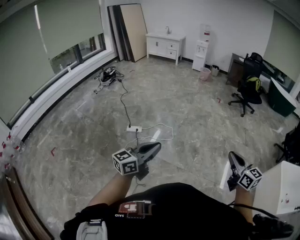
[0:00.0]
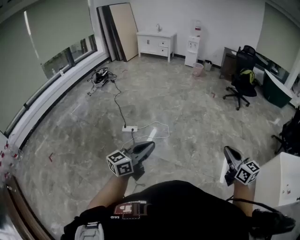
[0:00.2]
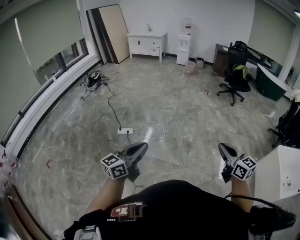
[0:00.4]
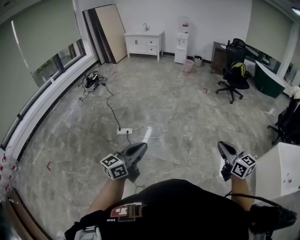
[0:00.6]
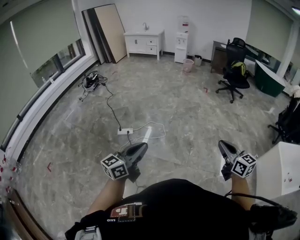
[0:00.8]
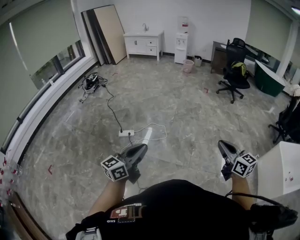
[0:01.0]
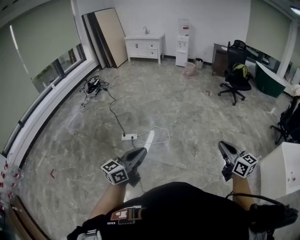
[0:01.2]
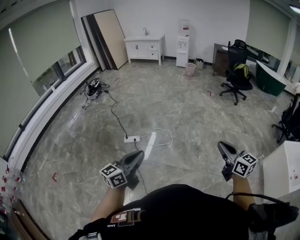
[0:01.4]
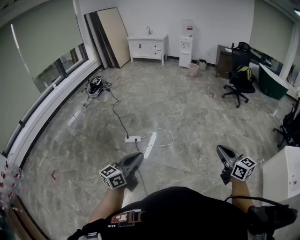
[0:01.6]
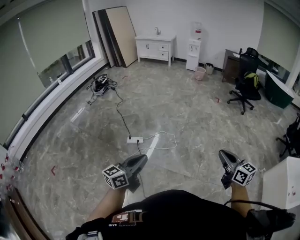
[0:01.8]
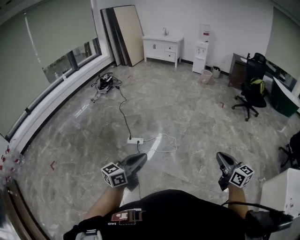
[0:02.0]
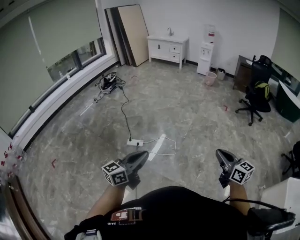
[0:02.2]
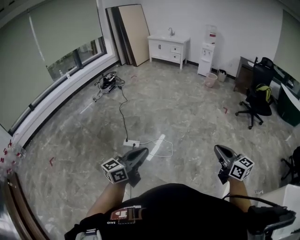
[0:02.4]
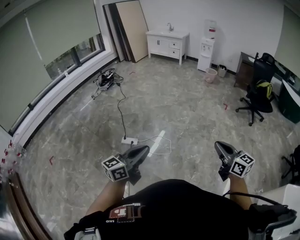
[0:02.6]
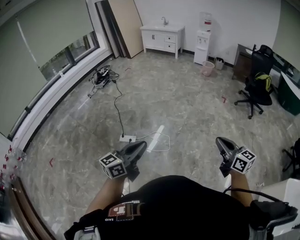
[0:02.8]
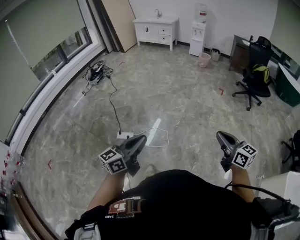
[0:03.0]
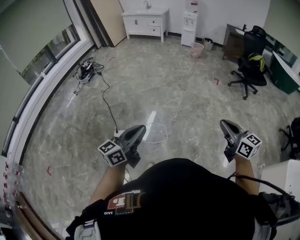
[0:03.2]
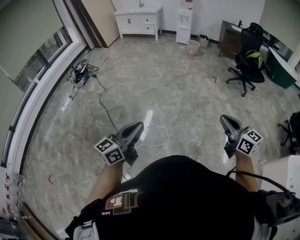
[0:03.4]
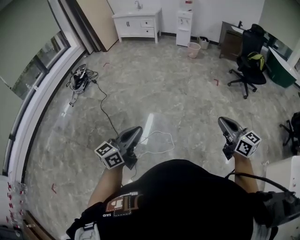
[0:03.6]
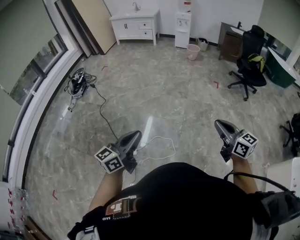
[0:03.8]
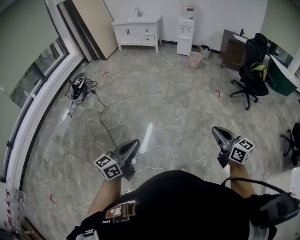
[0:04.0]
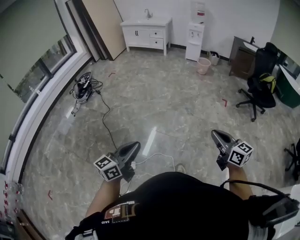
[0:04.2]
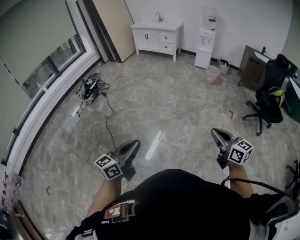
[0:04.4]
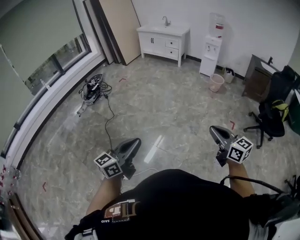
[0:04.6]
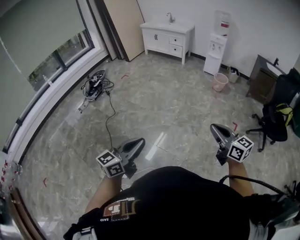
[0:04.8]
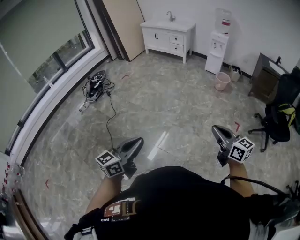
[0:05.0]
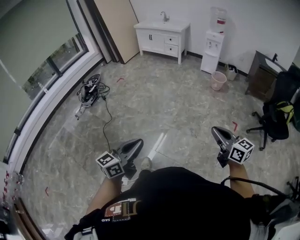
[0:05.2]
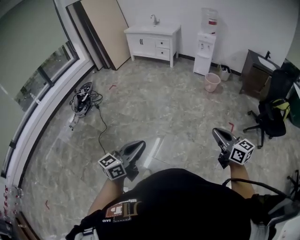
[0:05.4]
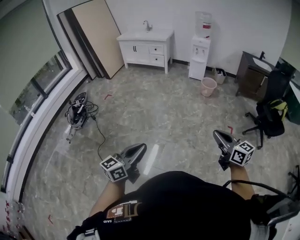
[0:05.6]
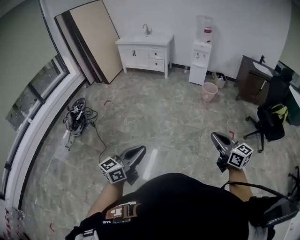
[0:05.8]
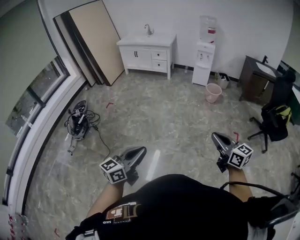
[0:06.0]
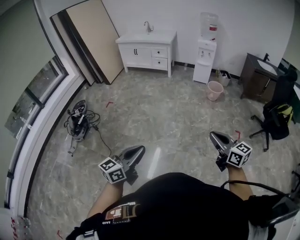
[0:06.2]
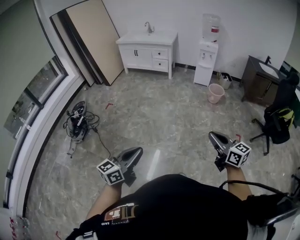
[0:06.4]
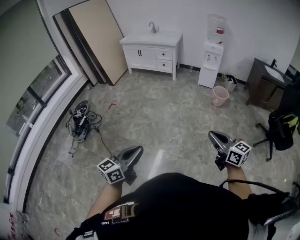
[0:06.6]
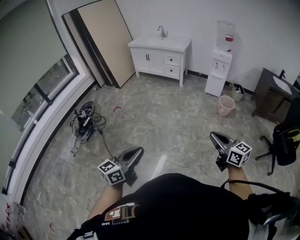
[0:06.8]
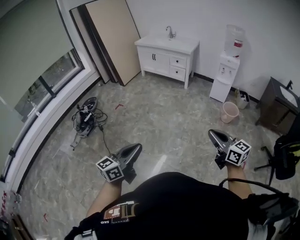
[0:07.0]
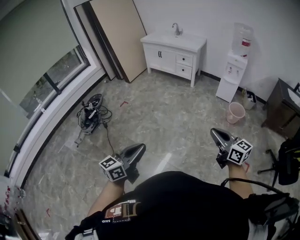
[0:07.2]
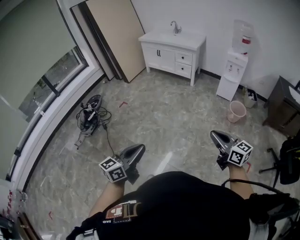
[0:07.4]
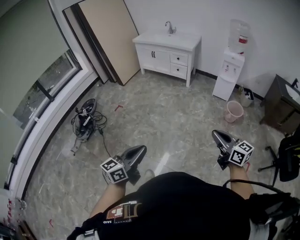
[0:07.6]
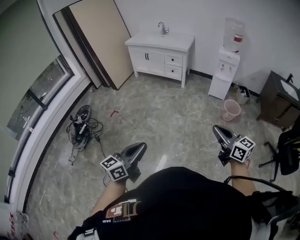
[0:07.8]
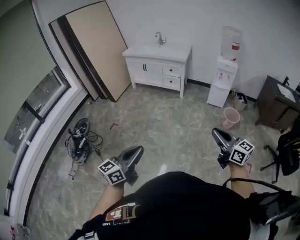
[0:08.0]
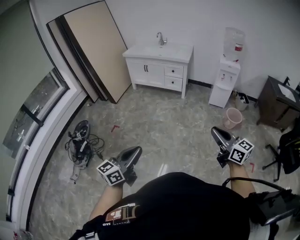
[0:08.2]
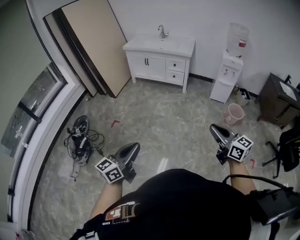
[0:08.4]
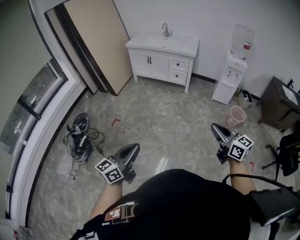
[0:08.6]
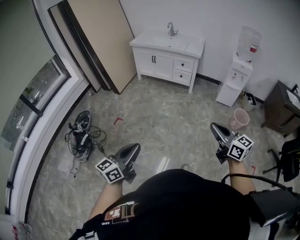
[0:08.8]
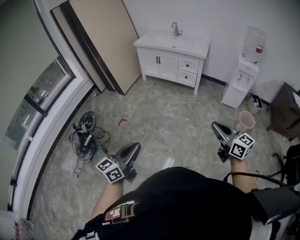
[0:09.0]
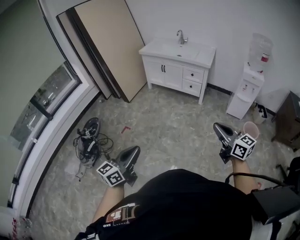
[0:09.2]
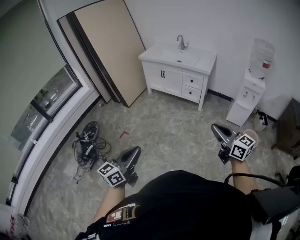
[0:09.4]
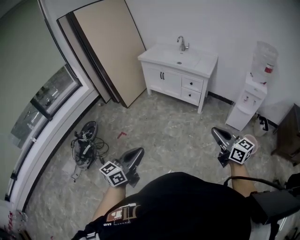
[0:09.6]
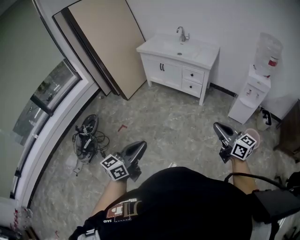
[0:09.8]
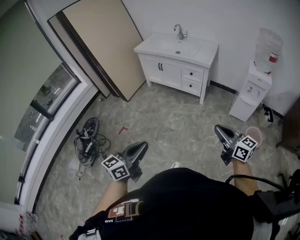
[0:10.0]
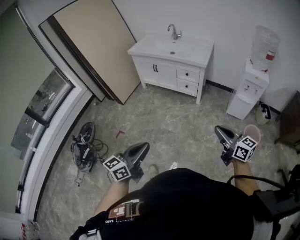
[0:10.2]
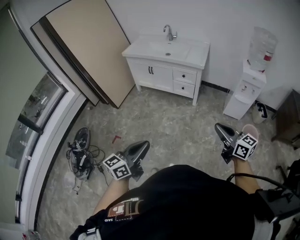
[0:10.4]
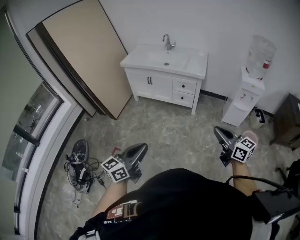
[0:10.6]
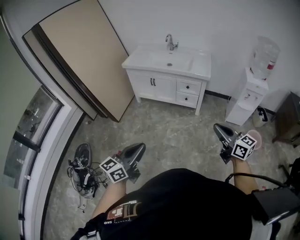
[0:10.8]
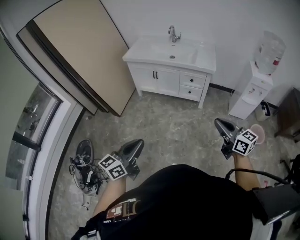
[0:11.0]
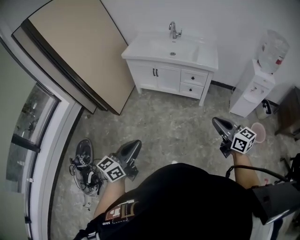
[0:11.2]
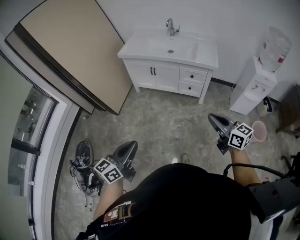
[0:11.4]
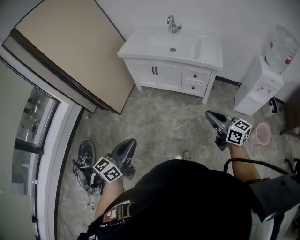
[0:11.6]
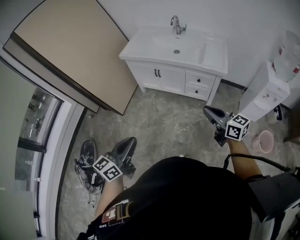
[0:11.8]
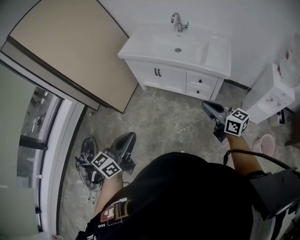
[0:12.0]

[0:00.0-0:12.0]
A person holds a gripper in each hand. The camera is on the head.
0:00.0 to 0:01.6: The left gripper is displaced to the left by approximately 15 cm, while the right gripper goes some 20 cm to the left and forward.
0:01.6 to 0:03.0: Both grippers move forward and to the right, approximately 35 cm.
0:03.0 to 0:04.4: The two grippers travel together, forward, some 50 cm.
0:04.4 to 0:06.0: Both grippers are carried forward, about 50 cm.
0:06.0 to 0:07.6: Both grippers move forward, some 35 cm.
0:07.6 to 0:09.0: The grippers both shift forward and to the left by roughly 40 cm.
0:09.0 to 0:10.4: The two grippers go approximately 35 cm forward and to the right.
0:10.4 to 0:12.0: Both grippers are carried forward, roughly 50 cm.

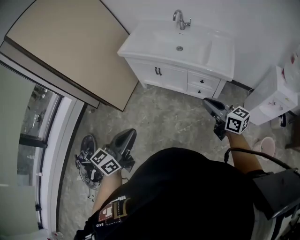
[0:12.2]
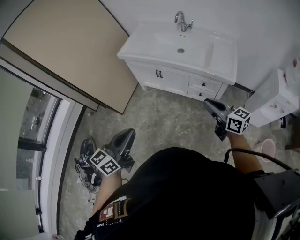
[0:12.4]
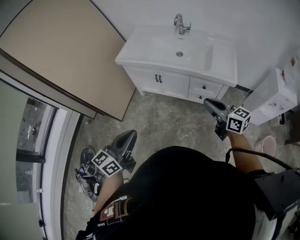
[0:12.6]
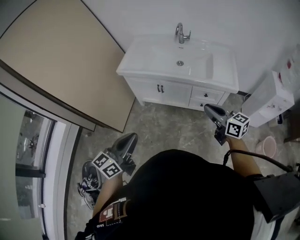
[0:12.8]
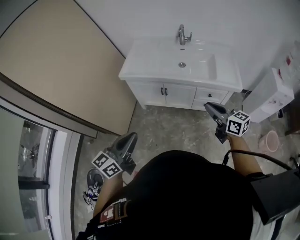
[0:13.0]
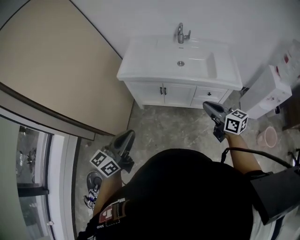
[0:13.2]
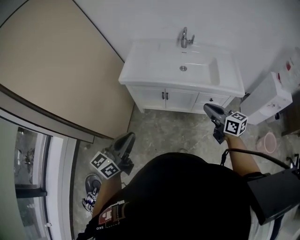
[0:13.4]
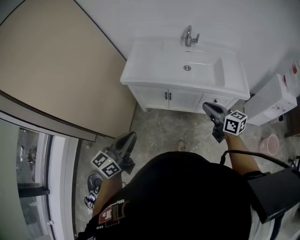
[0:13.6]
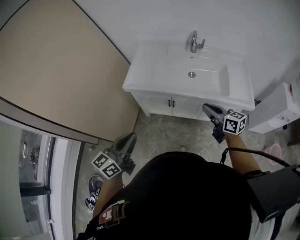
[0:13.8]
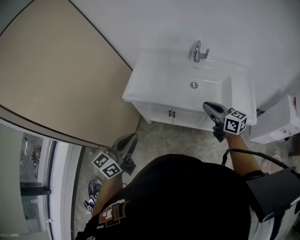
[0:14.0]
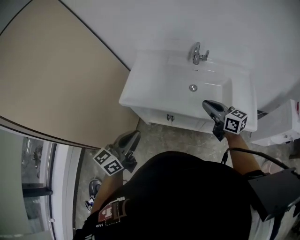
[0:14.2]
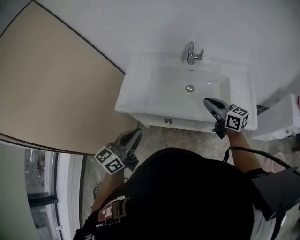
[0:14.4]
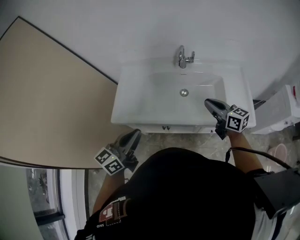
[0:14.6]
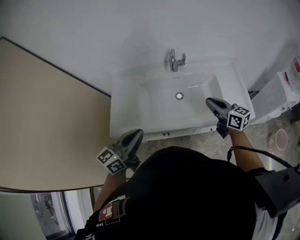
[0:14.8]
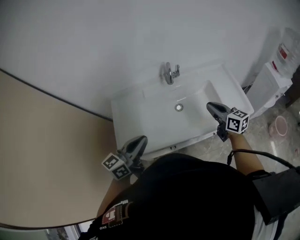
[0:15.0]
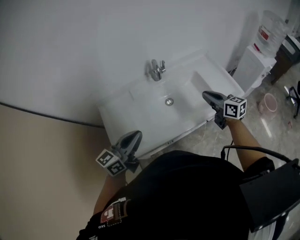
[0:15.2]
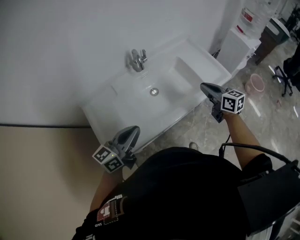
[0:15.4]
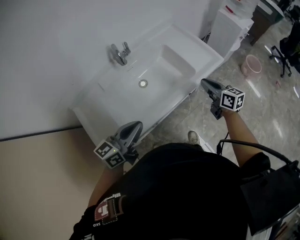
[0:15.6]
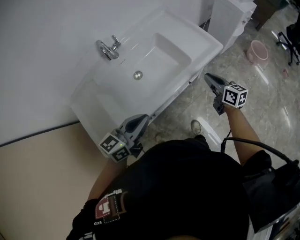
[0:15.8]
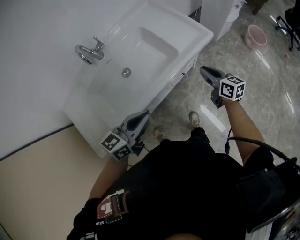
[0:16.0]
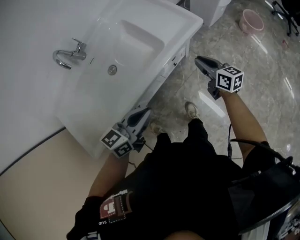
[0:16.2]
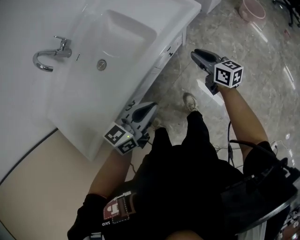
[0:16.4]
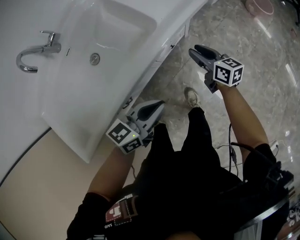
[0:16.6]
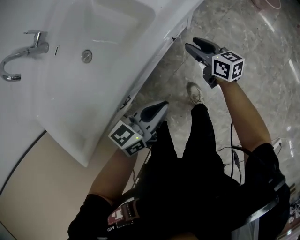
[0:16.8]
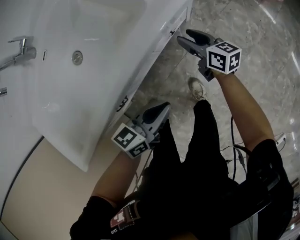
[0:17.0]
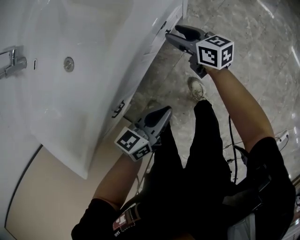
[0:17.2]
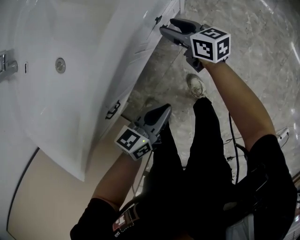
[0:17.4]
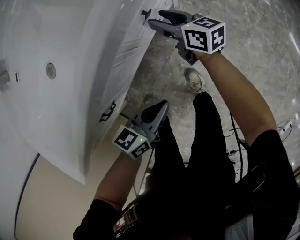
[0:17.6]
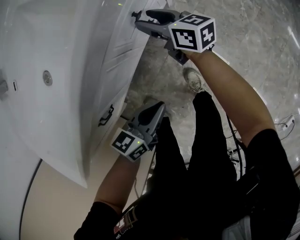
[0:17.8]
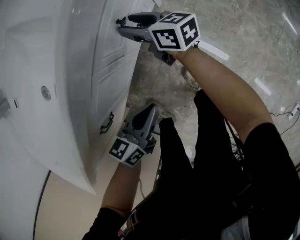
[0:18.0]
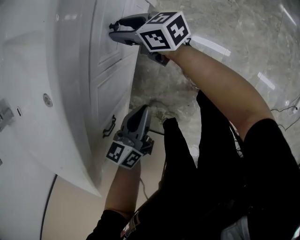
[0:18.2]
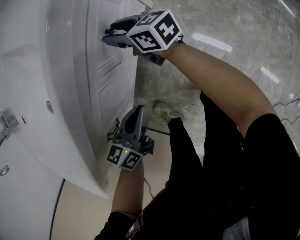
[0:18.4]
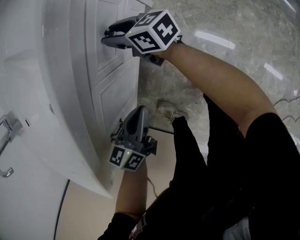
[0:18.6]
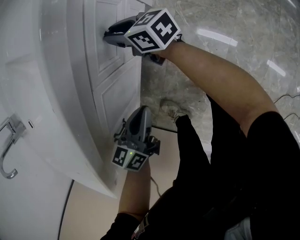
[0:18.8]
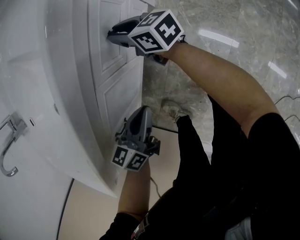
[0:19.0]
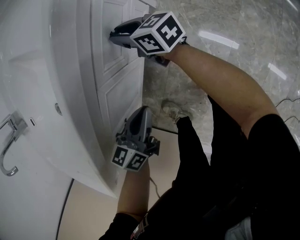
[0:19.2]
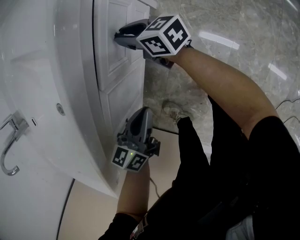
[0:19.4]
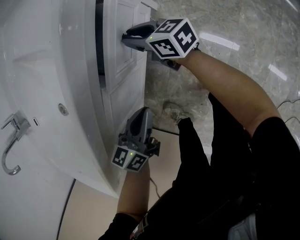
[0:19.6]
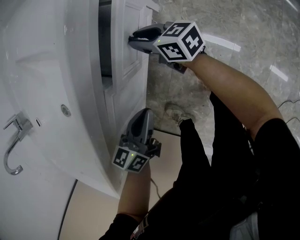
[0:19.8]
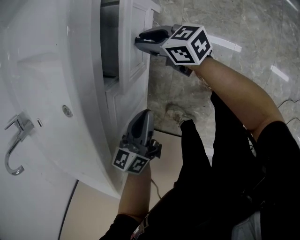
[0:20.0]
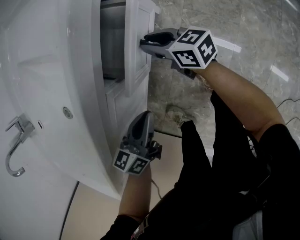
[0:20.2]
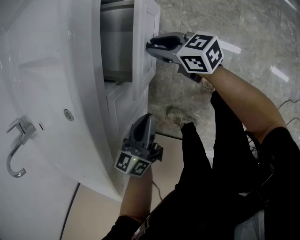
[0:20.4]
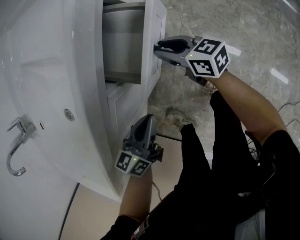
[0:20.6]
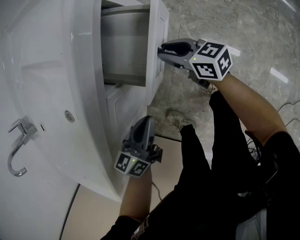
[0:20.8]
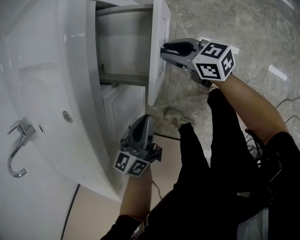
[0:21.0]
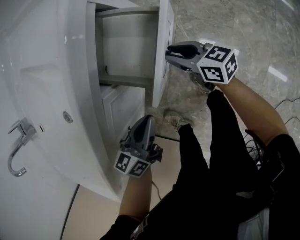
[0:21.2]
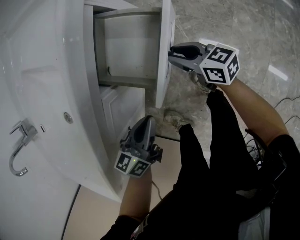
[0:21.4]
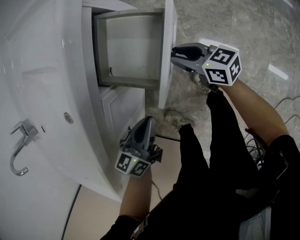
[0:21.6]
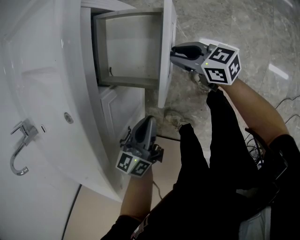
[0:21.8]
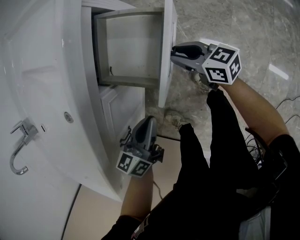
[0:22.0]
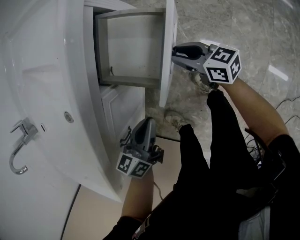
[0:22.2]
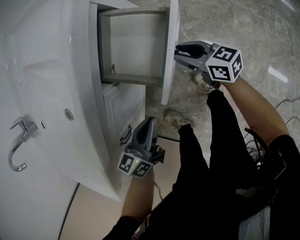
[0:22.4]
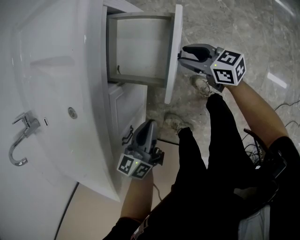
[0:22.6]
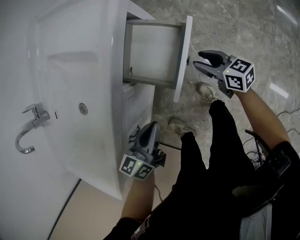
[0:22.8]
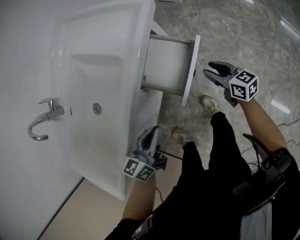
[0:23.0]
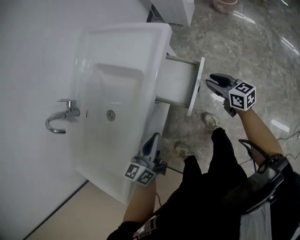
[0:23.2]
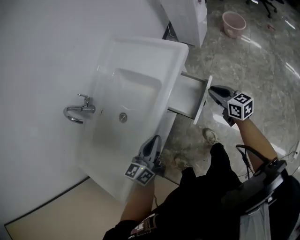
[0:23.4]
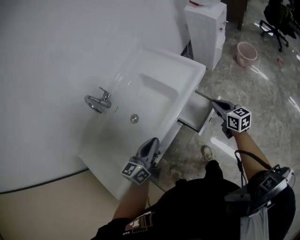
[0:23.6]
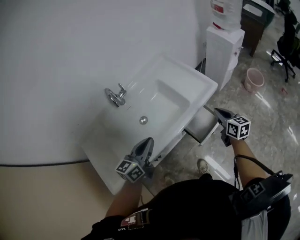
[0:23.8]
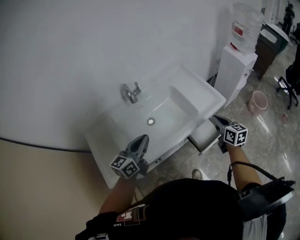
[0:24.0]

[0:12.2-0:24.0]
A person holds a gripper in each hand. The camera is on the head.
0:12.2 to 0:13.6: The grippers both shift forward and to the left by about 35 cm.
0:13.6 to 0:15.2: The right gripper ends up roughly 35 cm from where it was, and rotates roughly 30 degrees. Meanwhile the left gripper changes place by approximately 50 cm, and turns by approximately 40 degrees.
0:15.2 to 0:16.6: The right gripper heads downward, covering some 35 cm, rotates roughly 30 degrees, and opens its fingers. Meanwhile the left gripper shifts by some 50 cm, and turns by some 40 degrees.
0:16.6 to 0:18.2: The left gripper is displaced downward by some 25 cm. Meanwhile the right gripper travels downward and to the left by approximately 20 cm.
0:18.2 to 0:19.6: The grippers stay close to where they were, moving slightly.
0:19.6 to 0:21.0: The right gripper travels to the right and backward by approximately 10 cm.
0:21.0 to 0:22.6: The right gripper changes place by approximately 5 cm.
0:22.6 to 0:24.0: The left gripper moves upward and to the left, some 50 cm, and swivels approximately 40 degrees. The right gripper moves upward, about 40 cm, changes its angle by approximately 20 degrees, and closes up.
